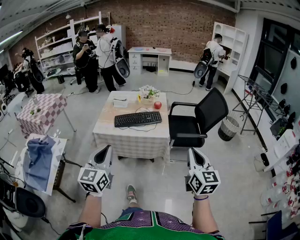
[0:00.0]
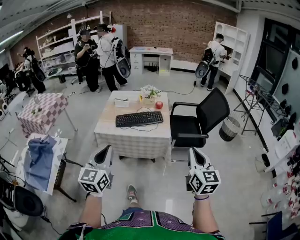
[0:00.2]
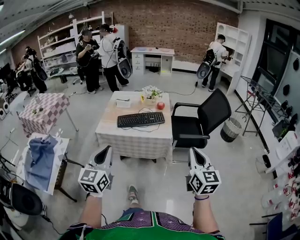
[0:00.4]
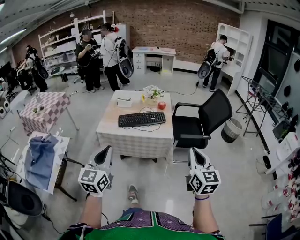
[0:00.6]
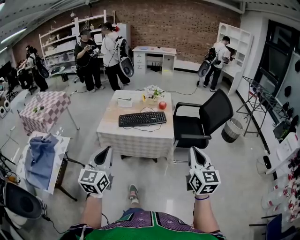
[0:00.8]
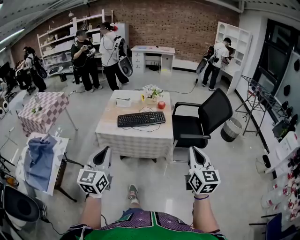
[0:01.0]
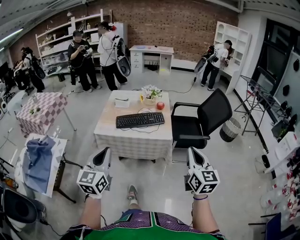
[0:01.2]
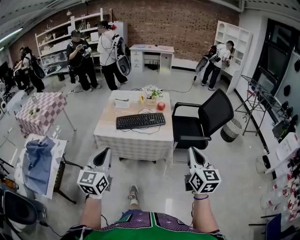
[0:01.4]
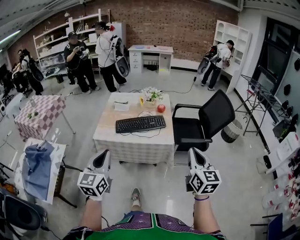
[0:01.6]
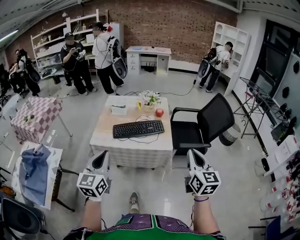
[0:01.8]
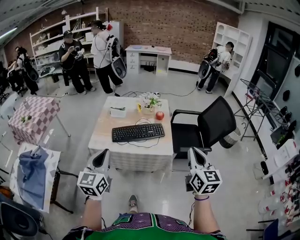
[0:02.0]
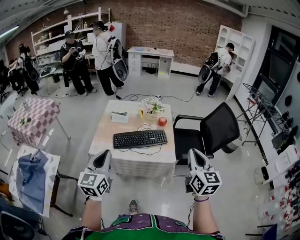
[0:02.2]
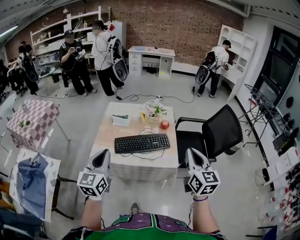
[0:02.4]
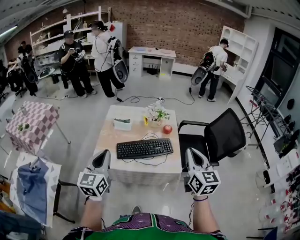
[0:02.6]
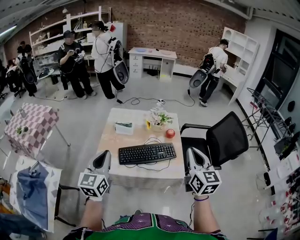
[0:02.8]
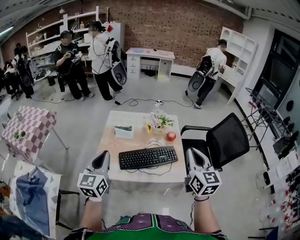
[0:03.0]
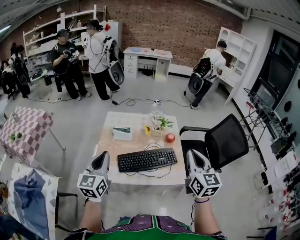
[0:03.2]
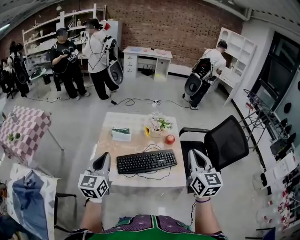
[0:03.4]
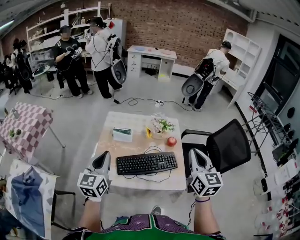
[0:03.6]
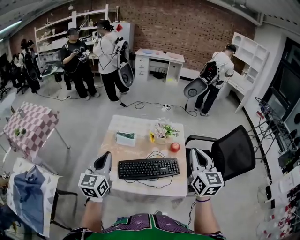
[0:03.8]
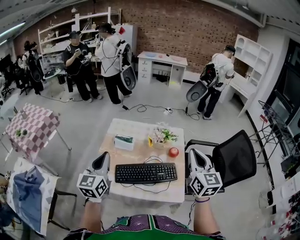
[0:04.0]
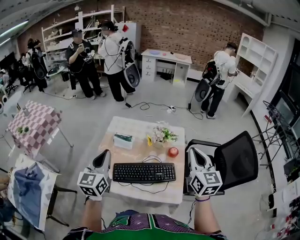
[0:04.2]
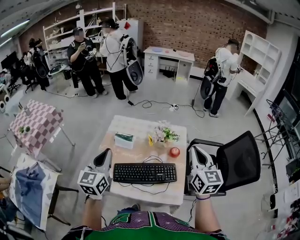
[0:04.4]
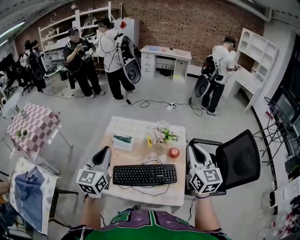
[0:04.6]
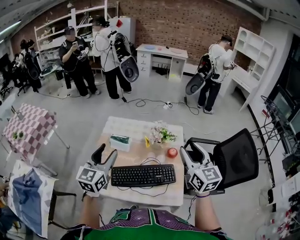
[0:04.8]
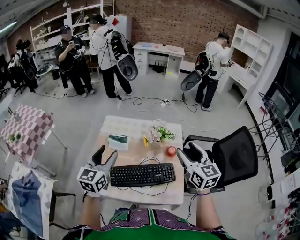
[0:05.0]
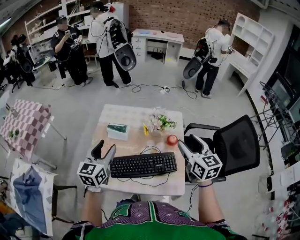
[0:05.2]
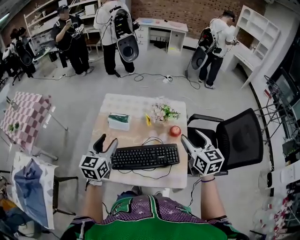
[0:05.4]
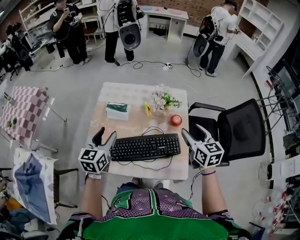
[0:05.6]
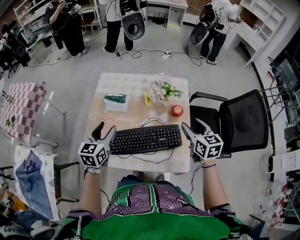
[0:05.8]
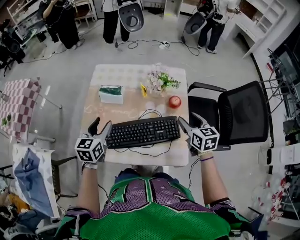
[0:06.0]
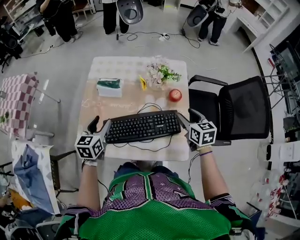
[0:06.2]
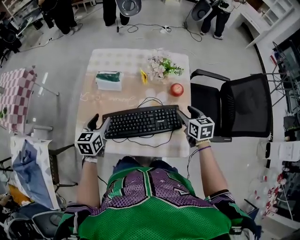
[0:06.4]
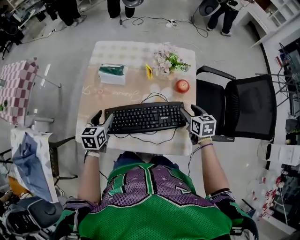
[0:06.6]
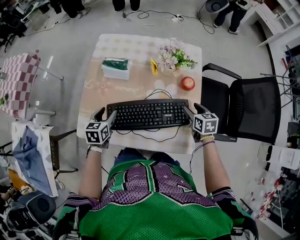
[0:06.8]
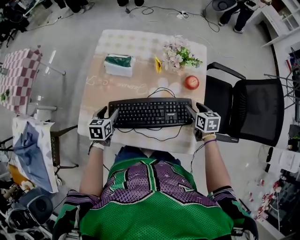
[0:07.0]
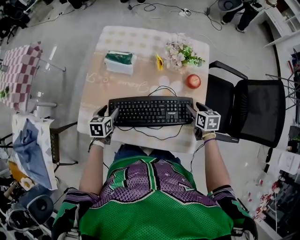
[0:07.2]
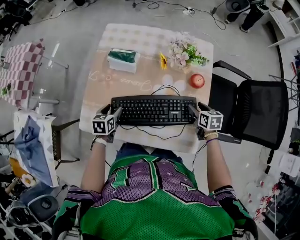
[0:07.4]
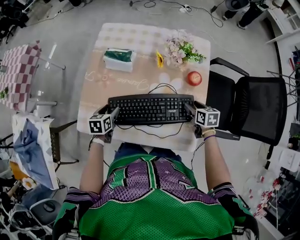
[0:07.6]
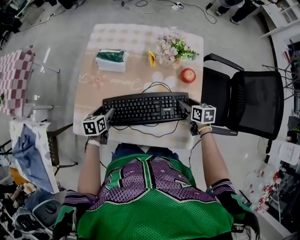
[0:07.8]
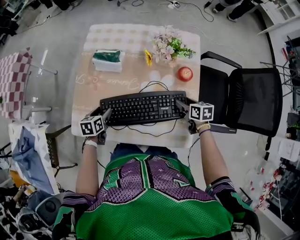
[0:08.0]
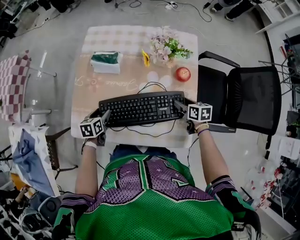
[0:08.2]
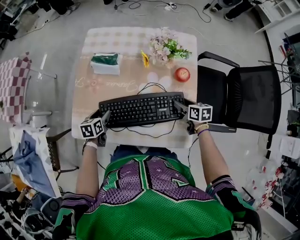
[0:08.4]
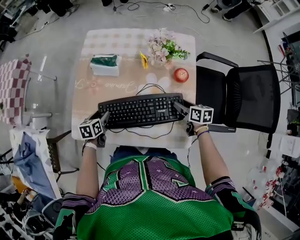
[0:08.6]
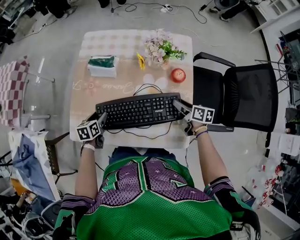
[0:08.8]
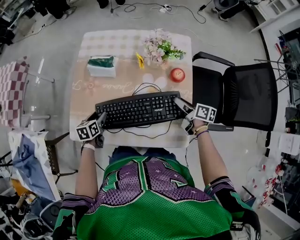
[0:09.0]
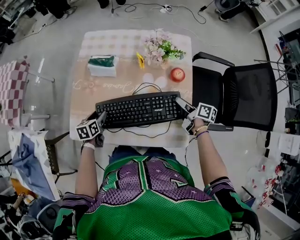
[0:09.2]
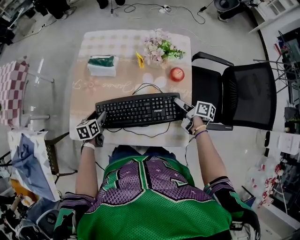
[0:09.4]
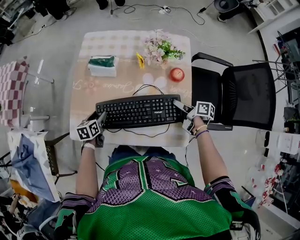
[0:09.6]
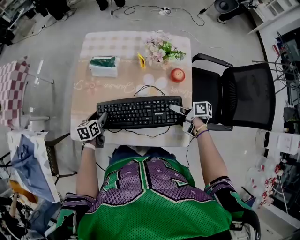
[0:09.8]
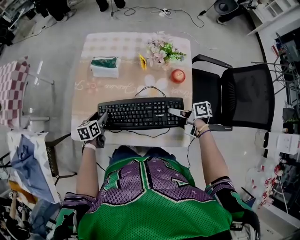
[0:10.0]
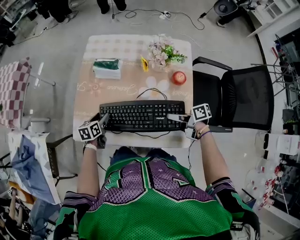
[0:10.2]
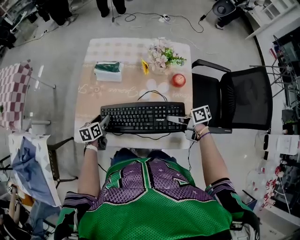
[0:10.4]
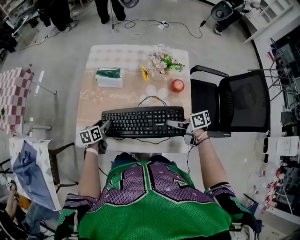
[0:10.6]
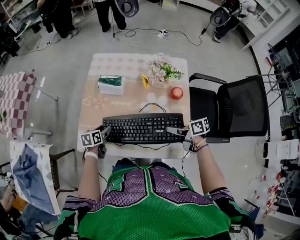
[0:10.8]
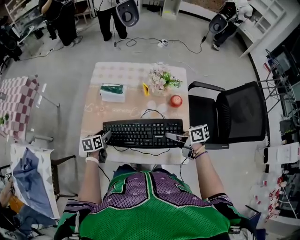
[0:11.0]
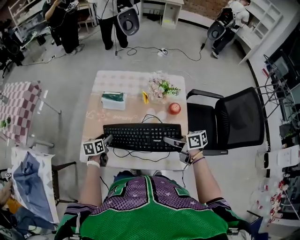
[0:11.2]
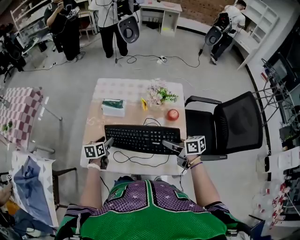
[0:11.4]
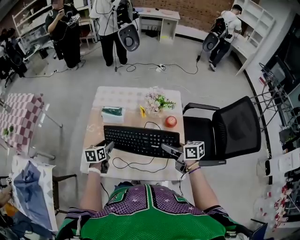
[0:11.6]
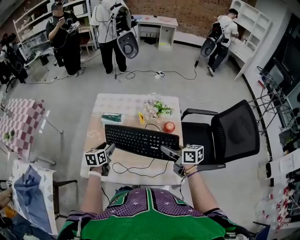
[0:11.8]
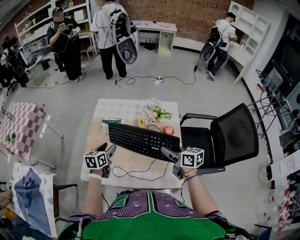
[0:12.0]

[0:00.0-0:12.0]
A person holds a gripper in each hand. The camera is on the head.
0:00.0 to 0:01.6: The grippers both shift forward by approximately 10 cm.
0:01.6 to 0:03.0: The right gripper is displaced forward and to the left by approximately 35 cm; the left gripper is displaced forward by about 30 cm.
0:03.0 to 0:04.4: The two grippers go some 15 cm forward and to the right.
0:04.4 to 0:06.0: The left gripper shifts approximately 20 cm downward and forward, rotates approximately 20 degrees, and opens up. The right gripper goes some 25 cm downward, swivels approximately 30 degrees, and opens up.
0:06.0 to 0:07.6: Both grippers move downward, about 20 cm. The right gripper swivels some 30 degrees. The left gripper rotates approximately 30 degrees.
0:07.6 to 0:09.0: The right gripper turns by some 40 degrees.
0:09.0 to 0:10.4: The right gripper is displaced to the left and backward by approximately 10 cm, rotates about 30 degrees, and closes.
0:10.4 to 0:12.0: The left gripper moves upward and to the right, approximately 20 cm; the right gripper goes approximately 15 cm upward, and changes its angle by about 40 degrees.

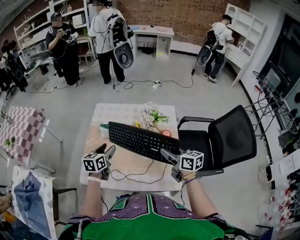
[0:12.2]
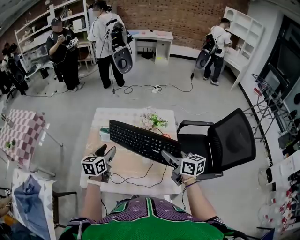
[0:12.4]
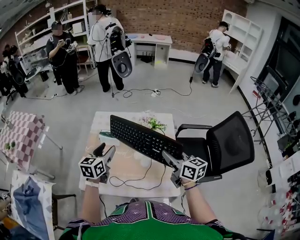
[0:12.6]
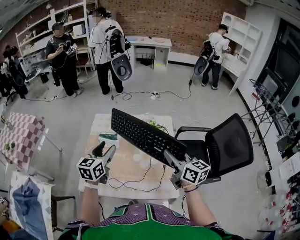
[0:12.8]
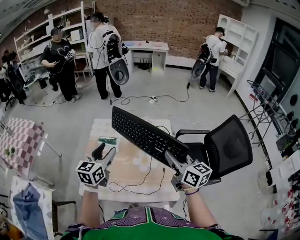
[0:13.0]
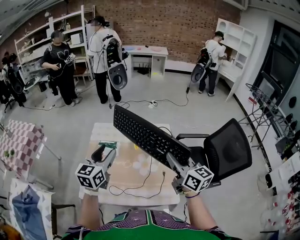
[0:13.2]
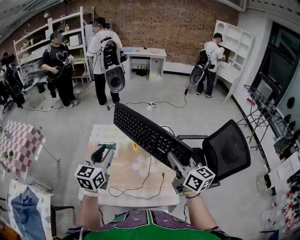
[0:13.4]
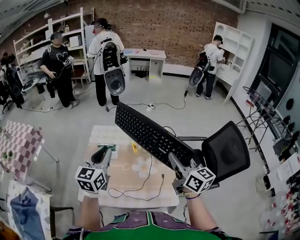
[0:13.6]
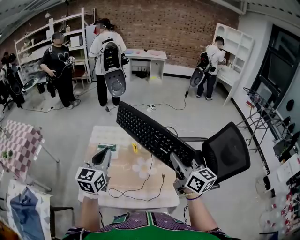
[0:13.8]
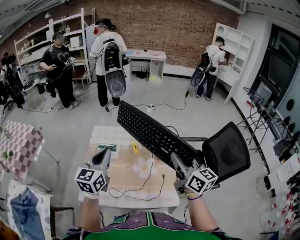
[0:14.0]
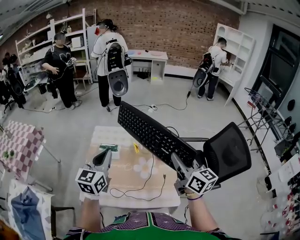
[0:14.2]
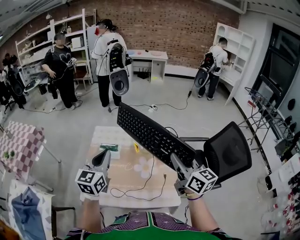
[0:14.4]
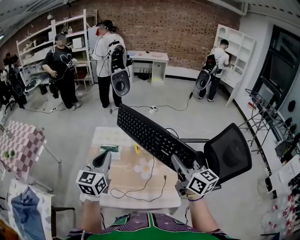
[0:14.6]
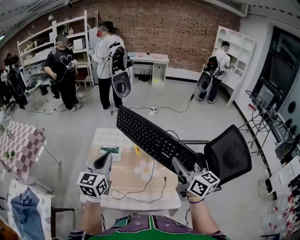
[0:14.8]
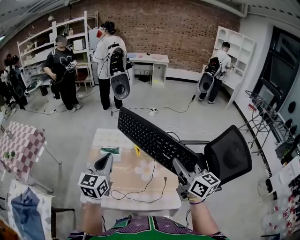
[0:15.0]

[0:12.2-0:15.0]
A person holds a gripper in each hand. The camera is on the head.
0:12.2 to 0:13.6: Both grippers travel together upward, approximately 20 cm. The left gripper turns by some 30 degrees, and closes up; the right gripper turns by about 30 degrees.
0:13.6 to 0:15.0: The grippers make only small movements.

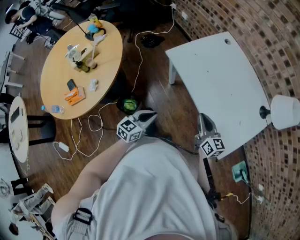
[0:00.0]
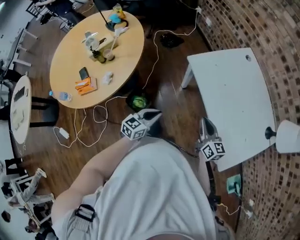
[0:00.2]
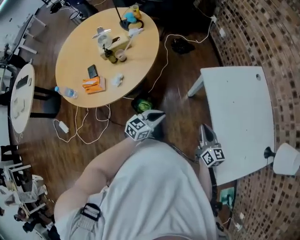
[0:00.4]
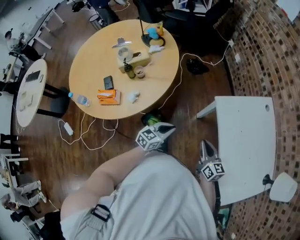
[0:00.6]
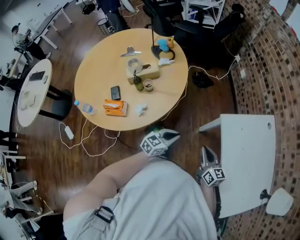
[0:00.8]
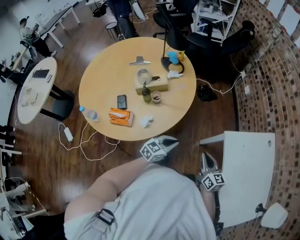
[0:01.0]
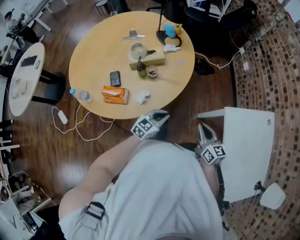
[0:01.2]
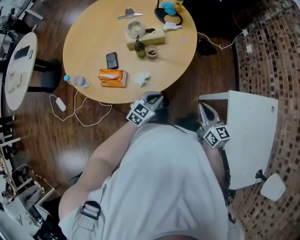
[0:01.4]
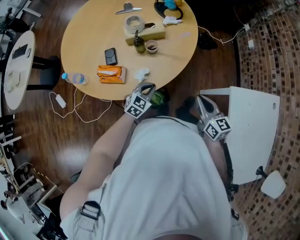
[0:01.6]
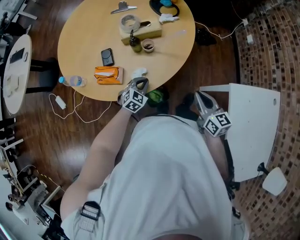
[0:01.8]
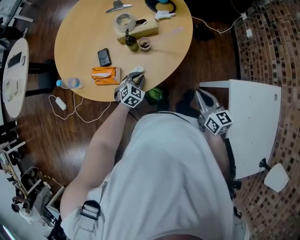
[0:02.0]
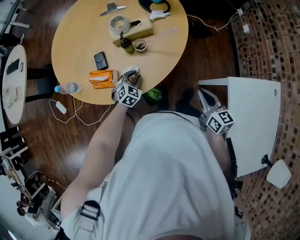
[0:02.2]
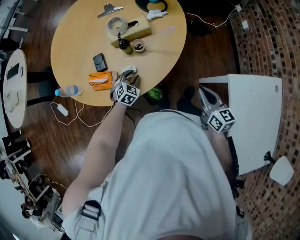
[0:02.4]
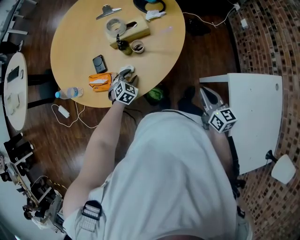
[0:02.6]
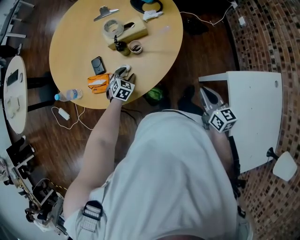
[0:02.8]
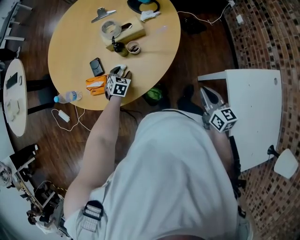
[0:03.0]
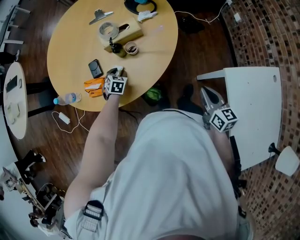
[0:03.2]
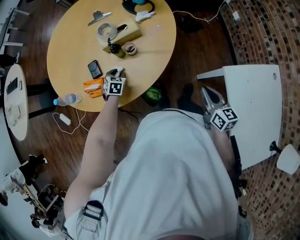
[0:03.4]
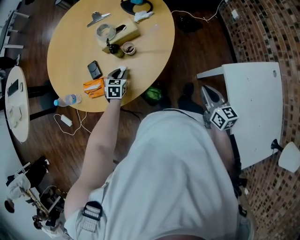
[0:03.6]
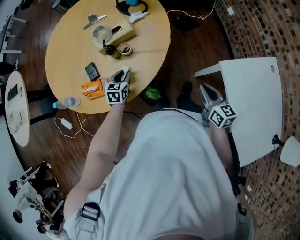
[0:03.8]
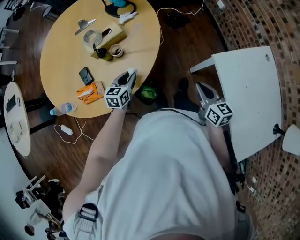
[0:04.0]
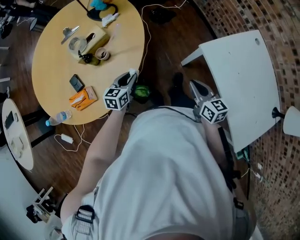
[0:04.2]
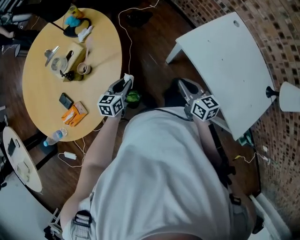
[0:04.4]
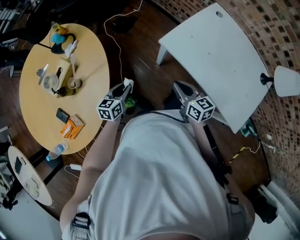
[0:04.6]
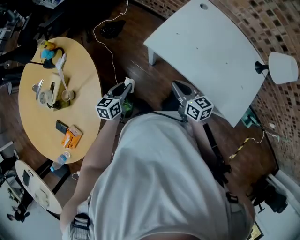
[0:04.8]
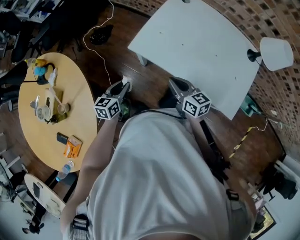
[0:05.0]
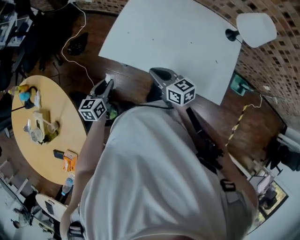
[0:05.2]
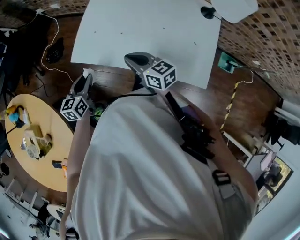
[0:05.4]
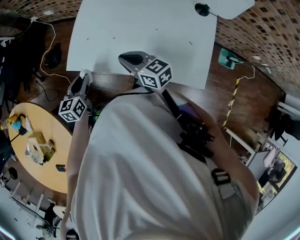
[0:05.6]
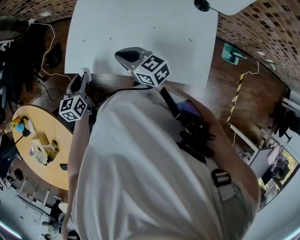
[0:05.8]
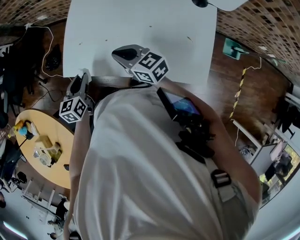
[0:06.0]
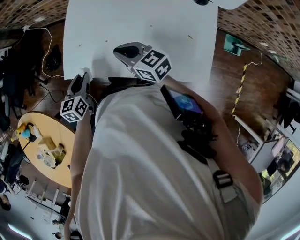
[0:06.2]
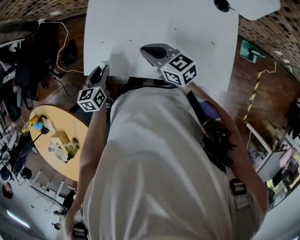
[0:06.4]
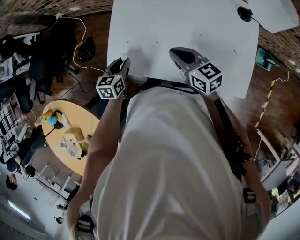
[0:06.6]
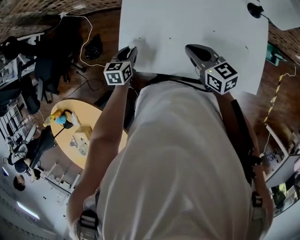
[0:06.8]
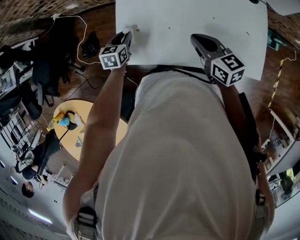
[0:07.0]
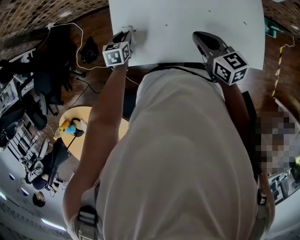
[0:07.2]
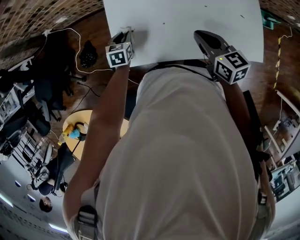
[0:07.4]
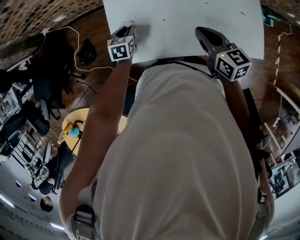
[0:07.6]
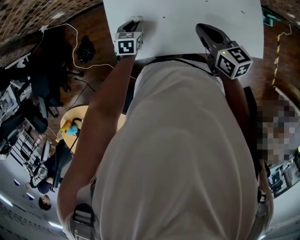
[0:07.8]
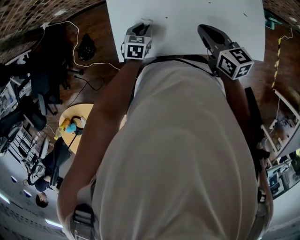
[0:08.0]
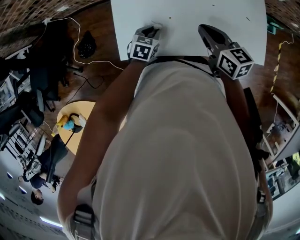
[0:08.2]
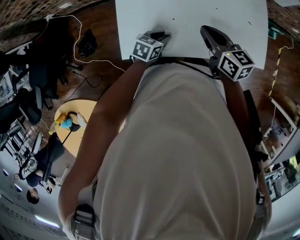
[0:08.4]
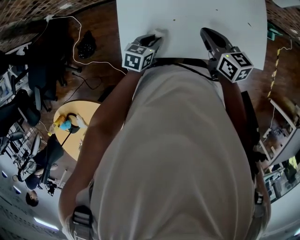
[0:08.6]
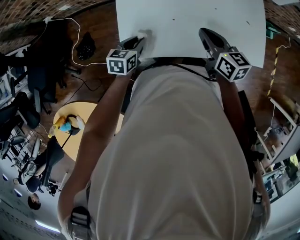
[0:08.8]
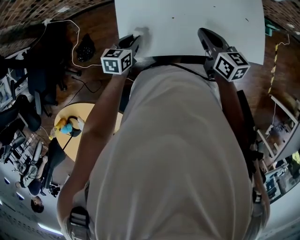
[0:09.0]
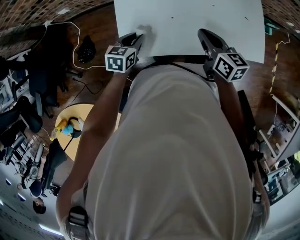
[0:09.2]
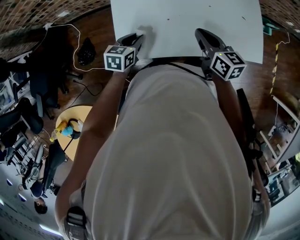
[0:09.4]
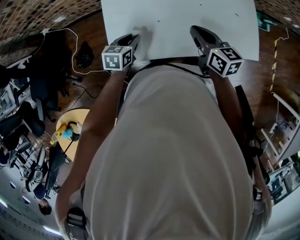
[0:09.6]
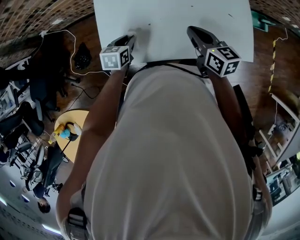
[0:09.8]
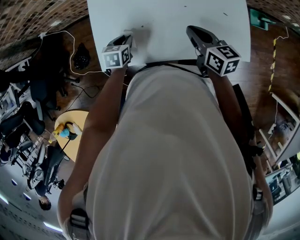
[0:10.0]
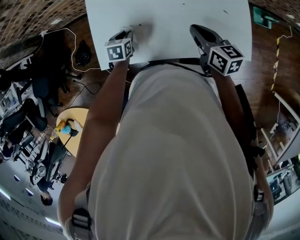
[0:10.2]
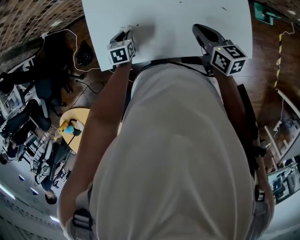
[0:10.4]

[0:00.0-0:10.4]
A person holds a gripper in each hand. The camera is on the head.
0:00.0 to 0:01.4: The right gripper moves about 40 cm, and rotates roughly 30 degrees; the left gripper ends up some 35 cm from where it was, and rotates approximately 20 degrees.
0:01.4 to 0:03.0: The right gripper ends up roughly 5 cm from where it was. Meanwhile the left gripper heads forward, to the left and downward, covering roughly 25 cm, turns by about 30 degrees, and opens its fingers.
0:03.0 to 0:04.4: The right gripper shifts by some 15 cm, and swivels approximately 20 degrees. Meanwhile the left gripper shifts by some 30 cm, rotates about 40 degrees, and closes.
0:04.4 to 0:06.0: Both grippers travel together to the right and forward, approximately 35 cm. The left gripper swivels roughly 30 degrees.
0:06.0 to 0:07.4: The right gripper rotates roughly 40 degrees. Meanwhile the left gripper heads forward and downward, covering roughly 20 cm, and changes its angle by some 30 degrees.
0:07.4 to 0:09.0: The left gripper is displaced backward by about 5 cm, and moves about 15 cm to the right and comes back.
0:09.0 to 0:10.4: The right gripper shifts about 15 cm to the right; the left gripper shifts about 10 cm to the right and forward, and swivels some 20 degrees.
